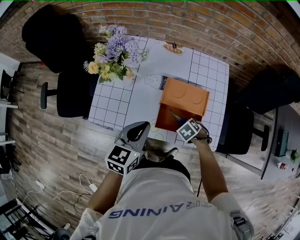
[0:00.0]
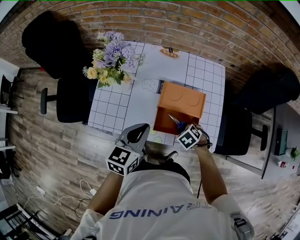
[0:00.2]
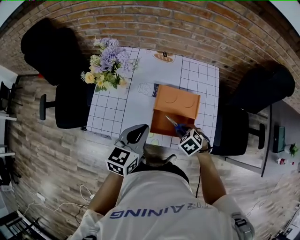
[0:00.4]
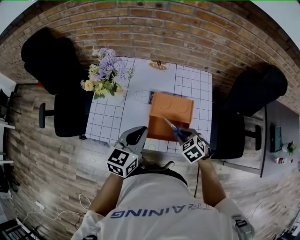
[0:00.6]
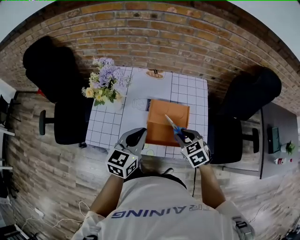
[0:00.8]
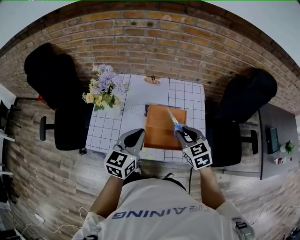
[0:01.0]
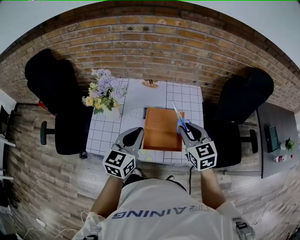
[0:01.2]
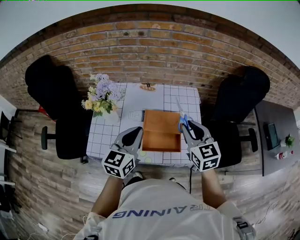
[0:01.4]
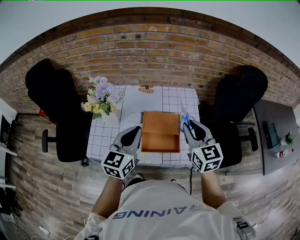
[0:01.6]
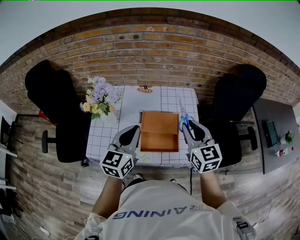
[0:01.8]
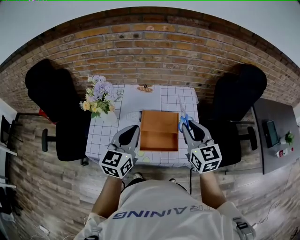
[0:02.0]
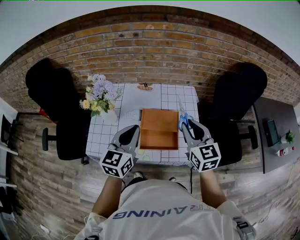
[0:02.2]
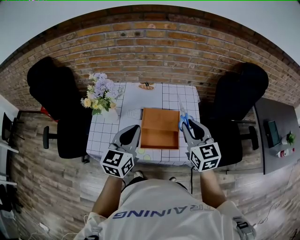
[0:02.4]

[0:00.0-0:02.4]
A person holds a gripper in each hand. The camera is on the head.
0:00.0 to 0:01.2: The left gripper travels upward by approximately 10 cm; the right gripper goes about 30 cm upward, and angles its fingers upward, by about 60 degrees.
0:01.2 to 0:02.4: The right gripper ends up roughly 5 cm from where it was.

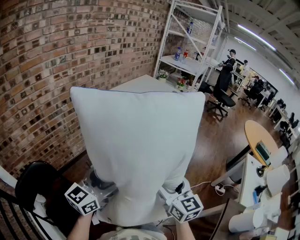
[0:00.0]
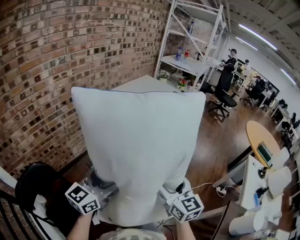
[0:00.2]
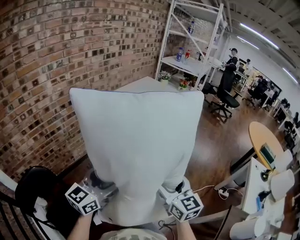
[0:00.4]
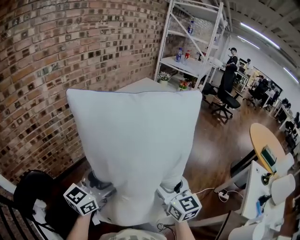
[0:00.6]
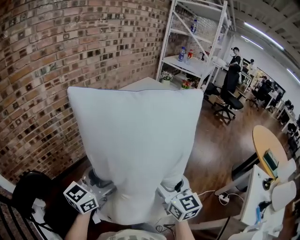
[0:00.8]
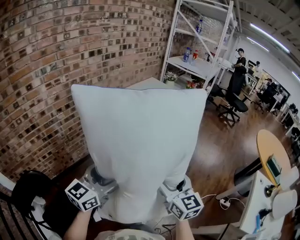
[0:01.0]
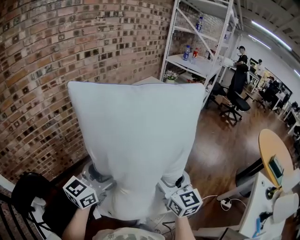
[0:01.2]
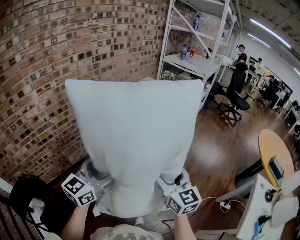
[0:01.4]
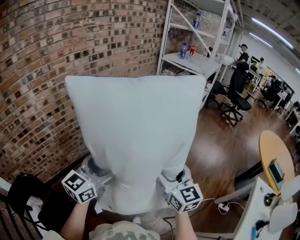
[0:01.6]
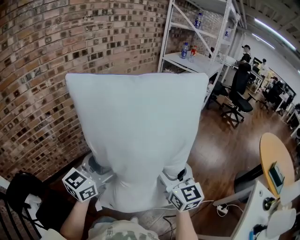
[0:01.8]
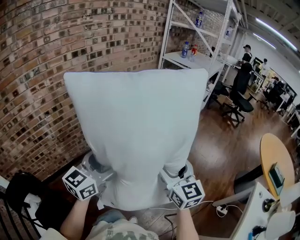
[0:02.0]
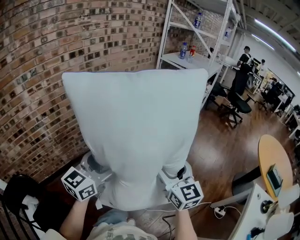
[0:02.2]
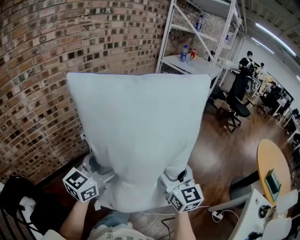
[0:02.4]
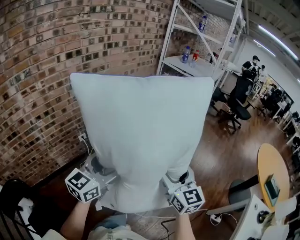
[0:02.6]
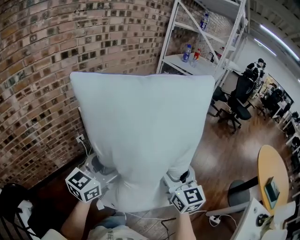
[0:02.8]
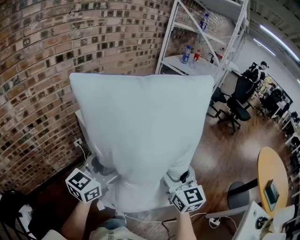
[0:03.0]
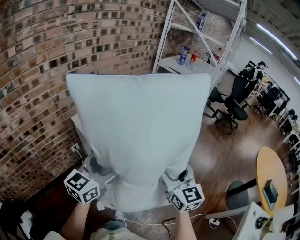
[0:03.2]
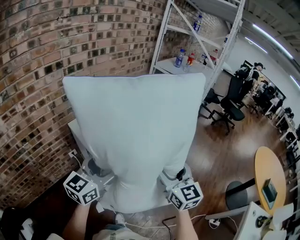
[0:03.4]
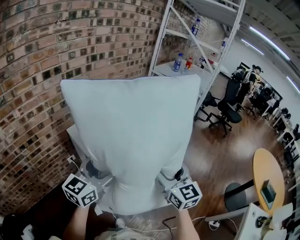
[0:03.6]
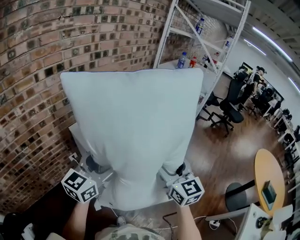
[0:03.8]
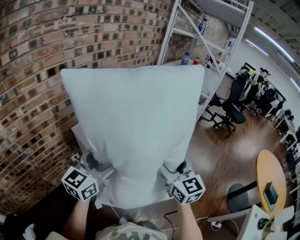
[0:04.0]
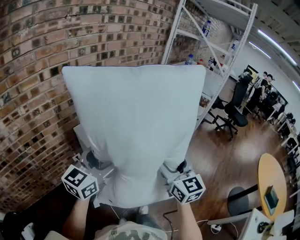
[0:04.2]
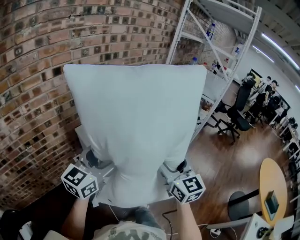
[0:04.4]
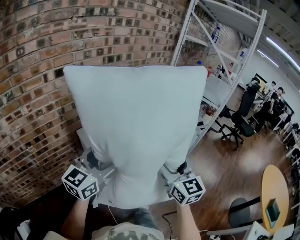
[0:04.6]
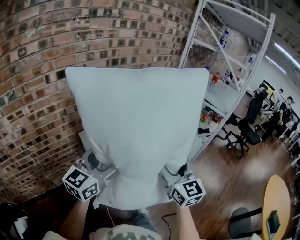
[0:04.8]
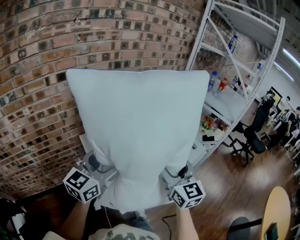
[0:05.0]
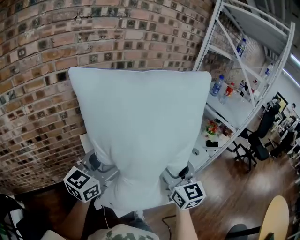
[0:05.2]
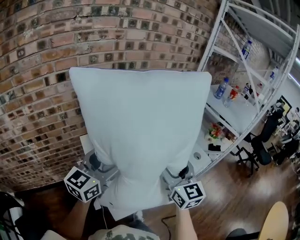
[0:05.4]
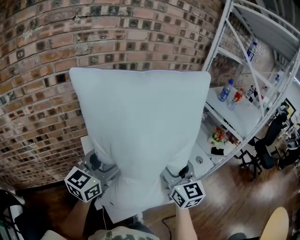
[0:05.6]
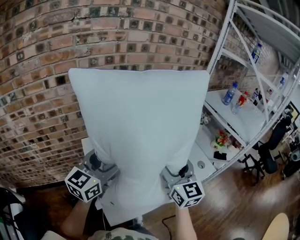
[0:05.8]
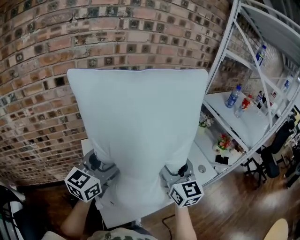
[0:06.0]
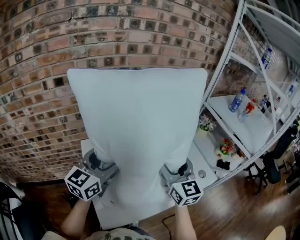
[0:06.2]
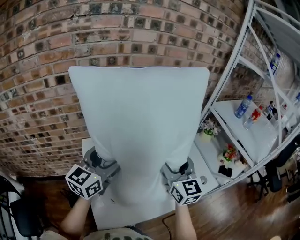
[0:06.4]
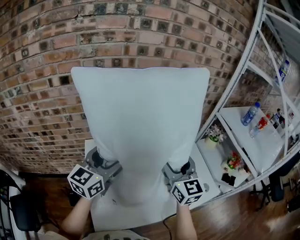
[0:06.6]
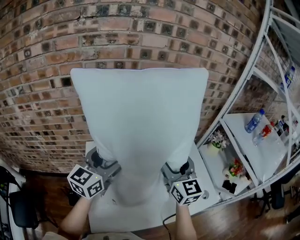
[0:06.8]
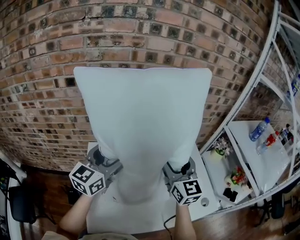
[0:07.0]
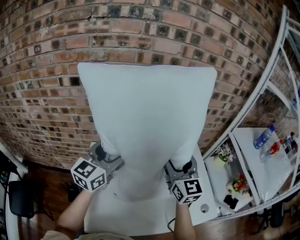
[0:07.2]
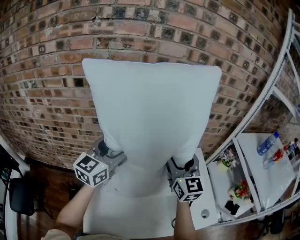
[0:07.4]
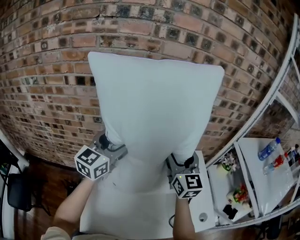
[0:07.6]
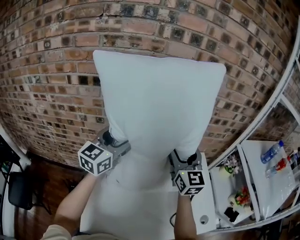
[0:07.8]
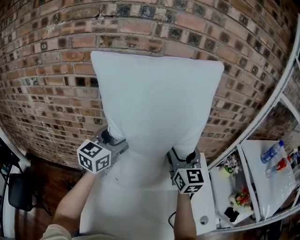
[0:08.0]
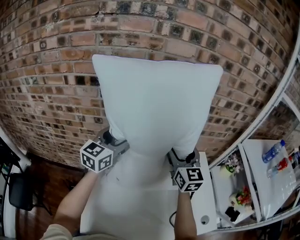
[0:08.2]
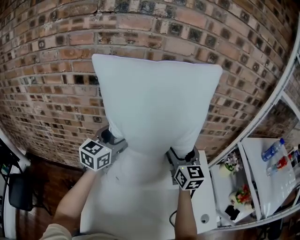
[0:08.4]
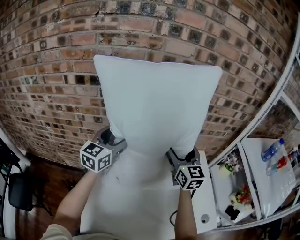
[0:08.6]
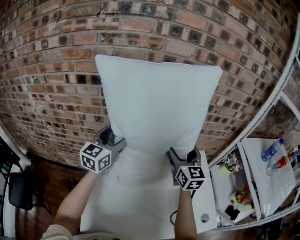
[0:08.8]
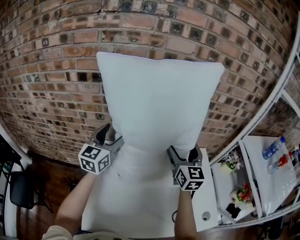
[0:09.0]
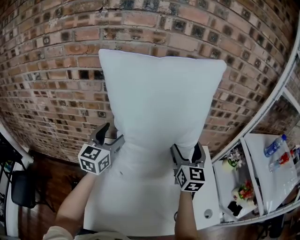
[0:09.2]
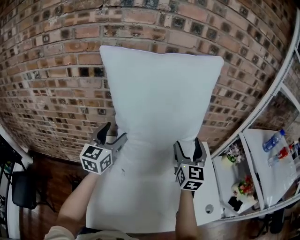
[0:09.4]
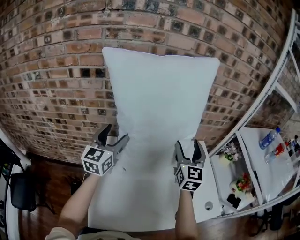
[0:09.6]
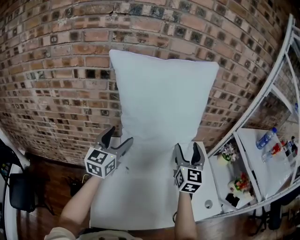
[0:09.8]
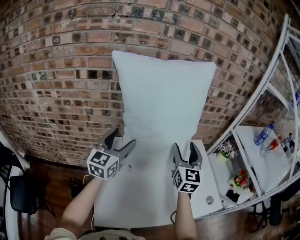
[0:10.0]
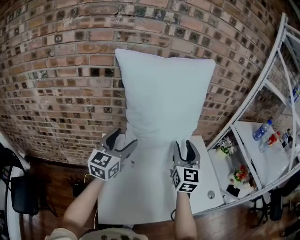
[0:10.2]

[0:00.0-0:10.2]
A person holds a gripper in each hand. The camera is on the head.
0:00.0 to 0:01.4: The right gripper shifts approximately 25 cm forward. Meanwhile the left gripper moves forward and to the right, some 25 cm.
0:01.4 to 0:03.0: Both grippers travel together forward, roughly 25 cm.
0:03.0 to 0:04.4: Both grippers move forward and to the left, approximately 15 cm.
0:04.4 to 0:05.8: The grippers both shift forward by approximately 20 cm.
0:05.8 to 0:07.2: The grippers both shift forward by approximately 15 cm. The left gripper changes its angle by some 20 degrees.
0:07.2 to 0:08.8: The two grippers go about 10 cm forward.
0:08.8 to 0:10.2: The grippers both shift backward by some 10 cm. The right gripper closes up.

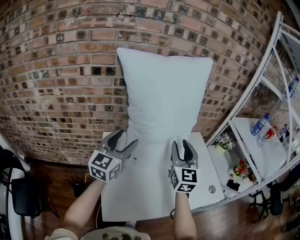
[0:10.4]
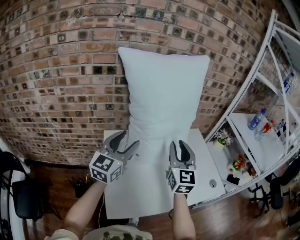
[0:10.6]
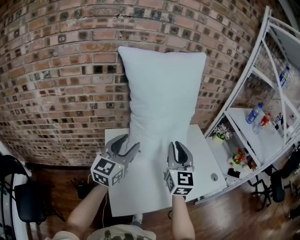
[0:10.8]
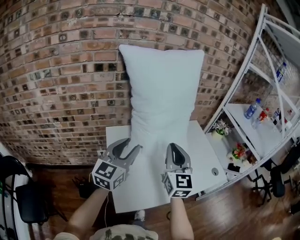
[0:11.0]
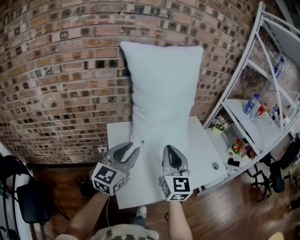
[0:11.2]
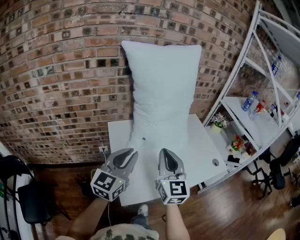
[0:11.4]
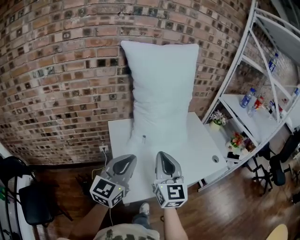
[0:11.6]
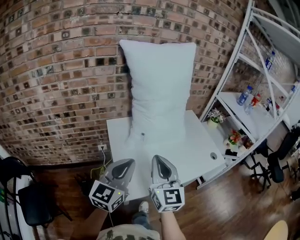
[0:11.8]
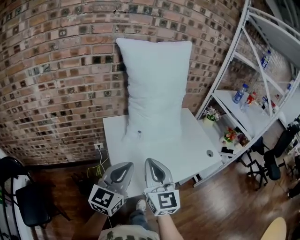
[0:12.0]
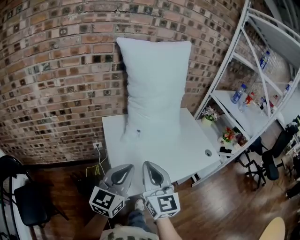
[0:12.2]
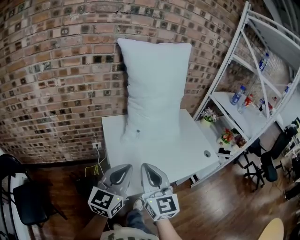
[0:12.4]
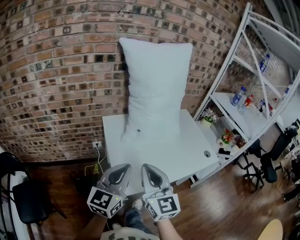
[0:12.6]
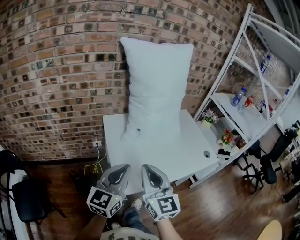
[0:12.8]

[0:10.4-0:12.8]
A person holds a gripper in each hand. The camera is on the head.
0:10.4 to 0:11.6: The left gripper goes approximately 20 cm backward, and closes. Meanwhile the right gripper moves backward and to the left, roughly 25 cm, and closes its fingers.
0:11.6 to 0:12.8: The grippers both shift backward by approximately 10 cm.

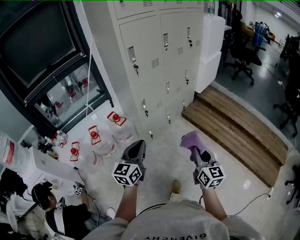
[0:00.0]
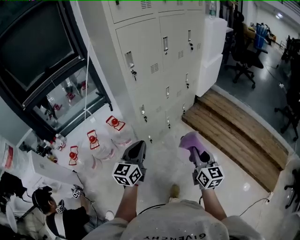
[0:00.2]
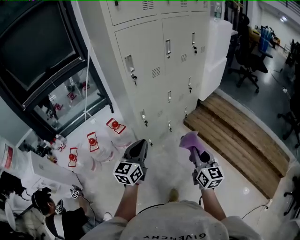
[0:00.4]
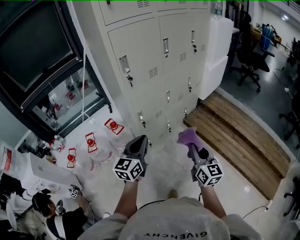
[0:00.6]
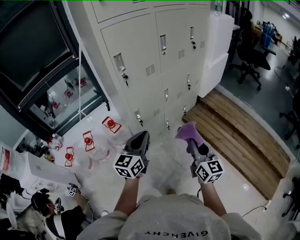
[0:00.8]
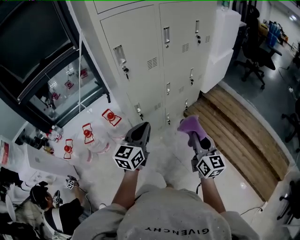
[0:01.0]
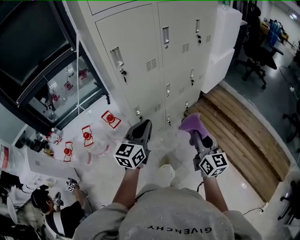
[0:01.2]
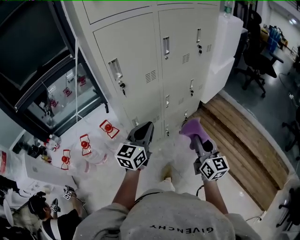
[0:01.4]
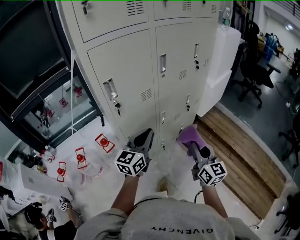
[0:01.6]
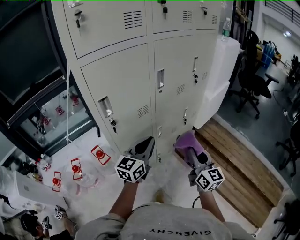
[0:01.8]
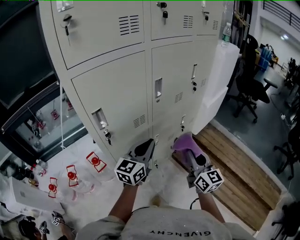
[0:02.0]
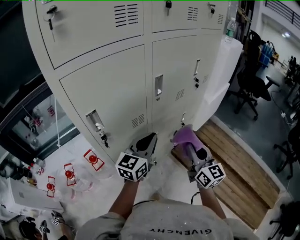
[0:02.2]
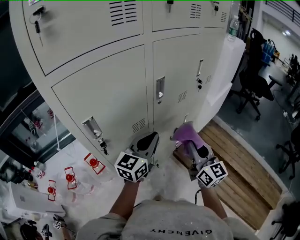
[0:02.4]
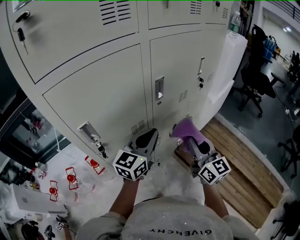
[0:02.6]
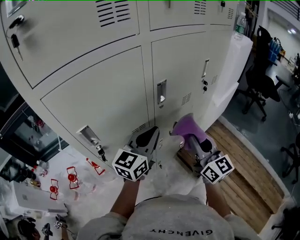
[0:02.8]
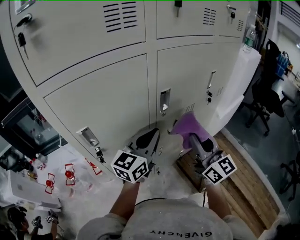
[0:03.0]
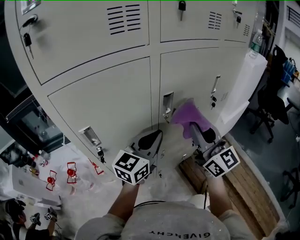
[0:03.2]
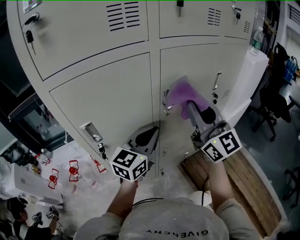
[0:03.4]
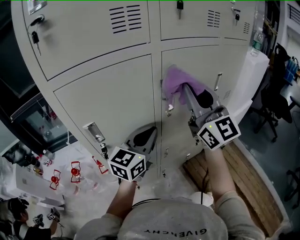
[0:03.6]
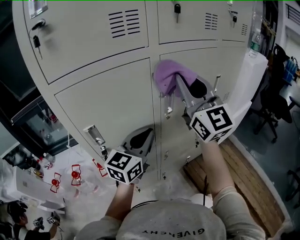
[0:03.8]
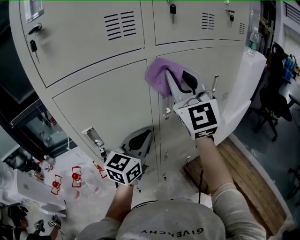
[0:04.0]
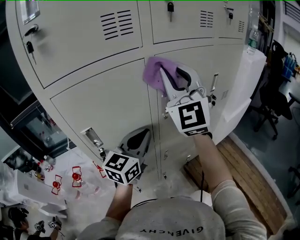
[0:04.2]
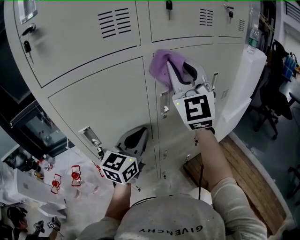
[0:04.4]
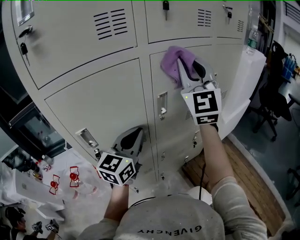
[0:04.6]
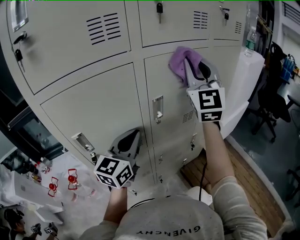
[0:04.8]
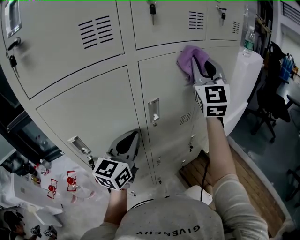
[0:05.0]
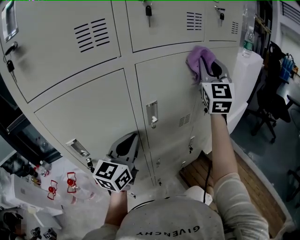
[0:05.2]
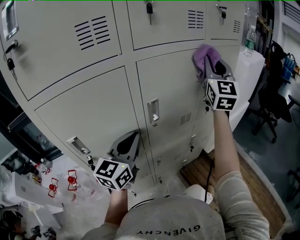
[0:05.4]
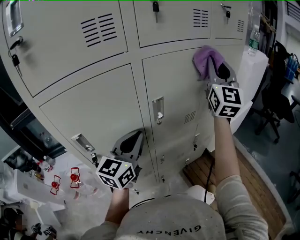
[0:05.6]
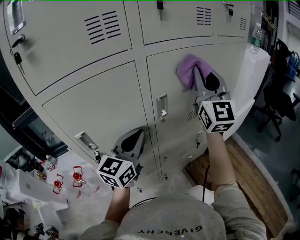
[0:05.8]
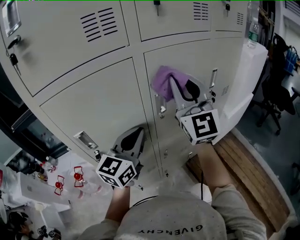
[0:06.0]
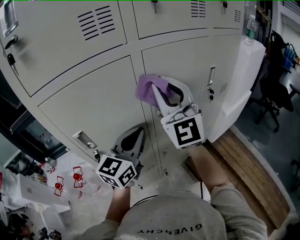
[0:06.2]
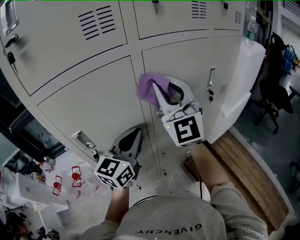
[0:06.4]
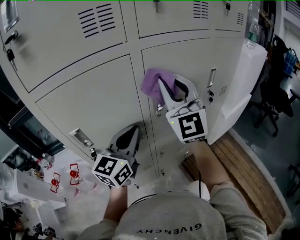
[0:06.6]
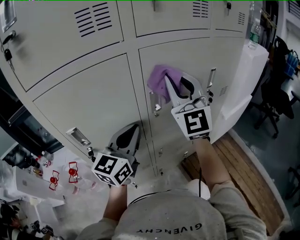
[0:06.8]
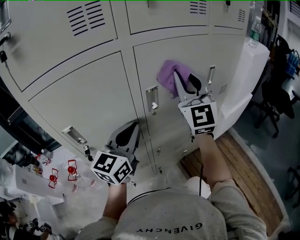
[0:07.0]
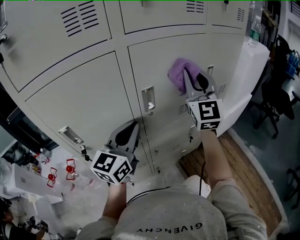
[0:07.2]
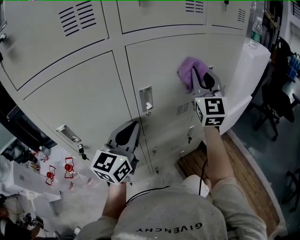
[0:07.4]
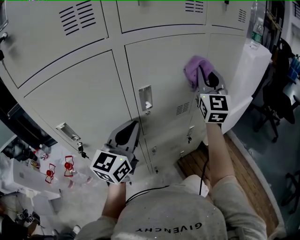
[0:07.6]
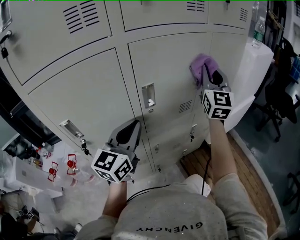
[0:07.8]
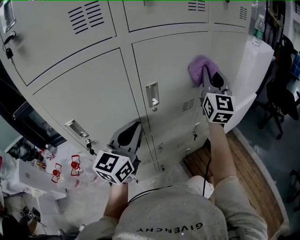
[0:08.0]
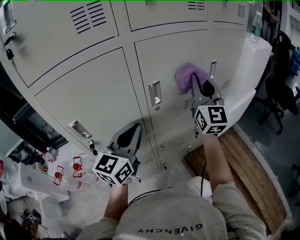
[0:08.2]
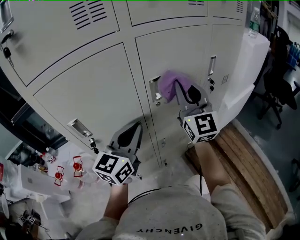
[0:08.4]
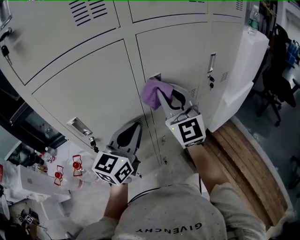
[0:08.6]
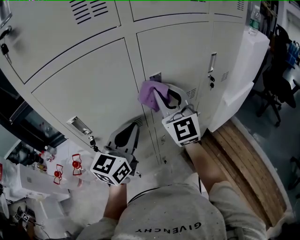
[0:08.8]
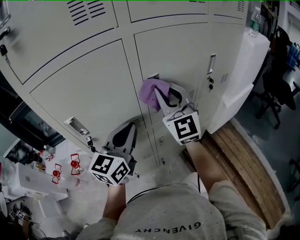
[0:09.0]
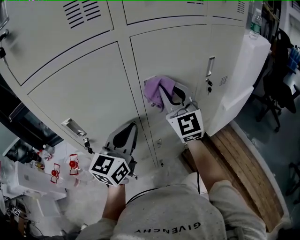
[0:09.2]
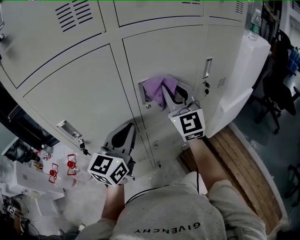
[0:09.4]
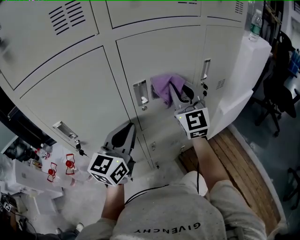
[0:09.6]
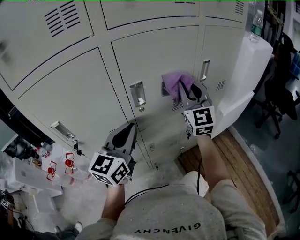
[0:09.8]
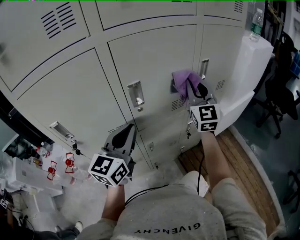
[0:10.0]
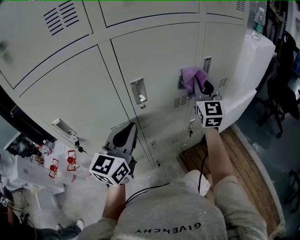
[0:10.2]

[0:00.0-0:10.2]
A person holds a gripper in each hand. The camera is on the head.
0:00.0 to 0:01.4: Both grippers move forward, about 30 cm.
0:01.4 to 0:03.0: The right gripper heads forward and upward, covering about 35 cm, and changes its angle by some 20 degrees. The left gripper is displaced forward by some 30 cm.
0:03.0 to 0:04.4: The right gripper is displaced upward, forward and to the left by roughly 25 cm, and rotates around the line of its fingers by some 50 degrees, counterclockwise from behind.
0:04.4 to 0:05.8: The right gripper moves to the right, about 10 cm, and changes its angle by about 20 degrees.
0:05.8 to 0:07.2: The right gripper is displaced downward by some 5 cm, and goes to the left and returns, approximately 15 cm each way.
0:07.2 to 0:08.8: The left gripper changes place by some 5 cm; the right gripper heads to the left, backward and downward, covering some 15 cm.
0:08.8 to 0:10.2: The right gripper moves to the right and forward, about 25 cm; the left gripper is displaced to the right by about 5 cm.
